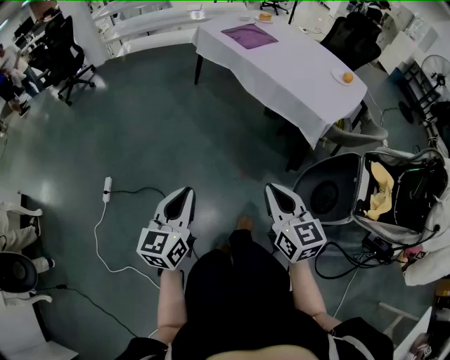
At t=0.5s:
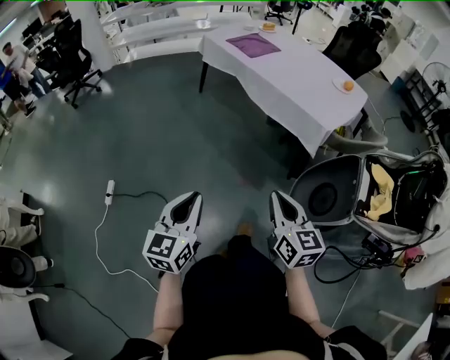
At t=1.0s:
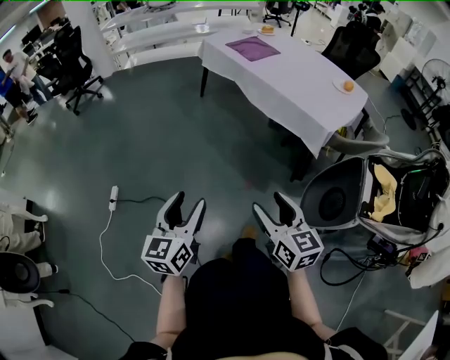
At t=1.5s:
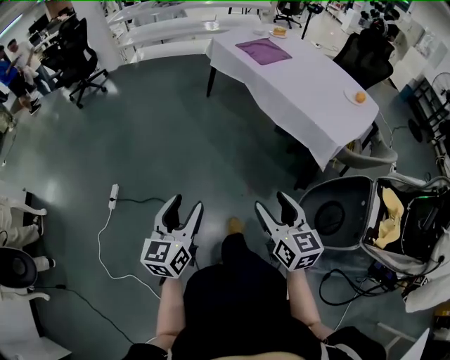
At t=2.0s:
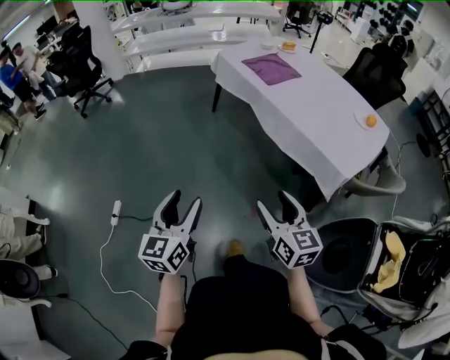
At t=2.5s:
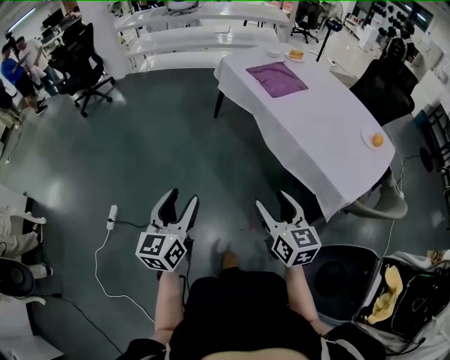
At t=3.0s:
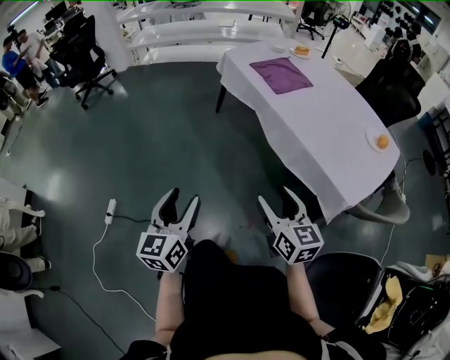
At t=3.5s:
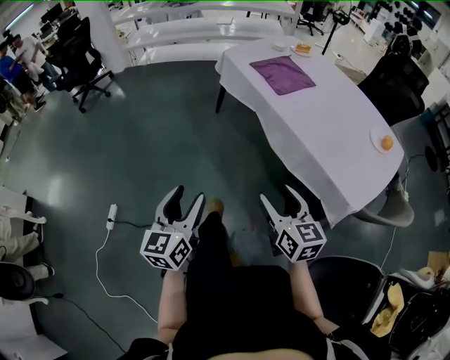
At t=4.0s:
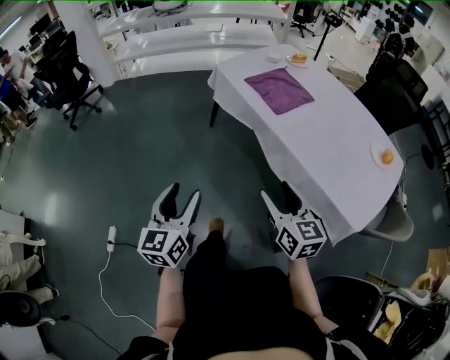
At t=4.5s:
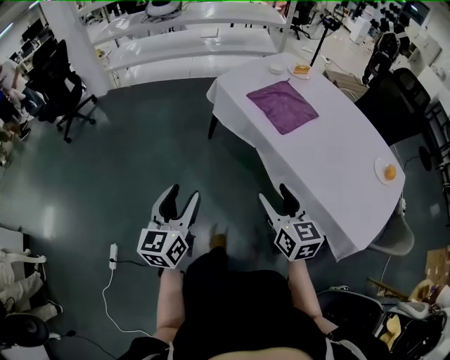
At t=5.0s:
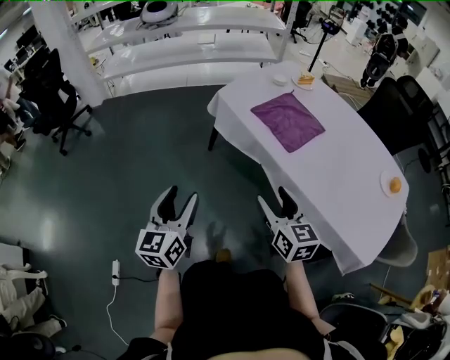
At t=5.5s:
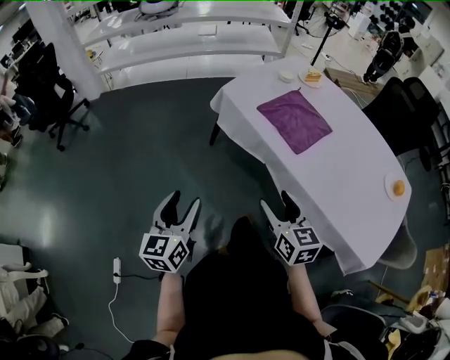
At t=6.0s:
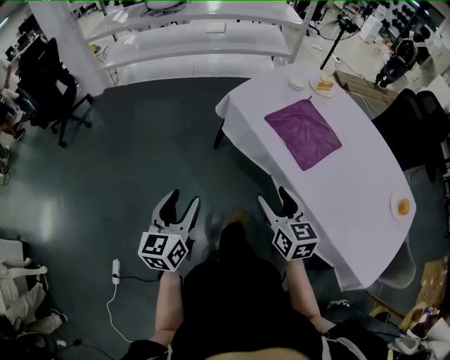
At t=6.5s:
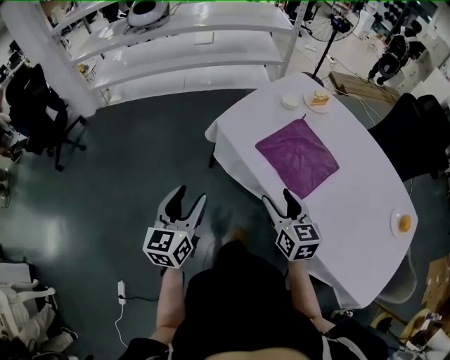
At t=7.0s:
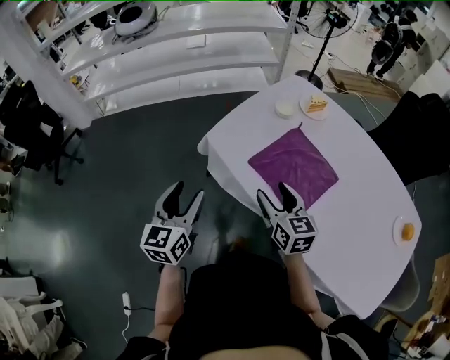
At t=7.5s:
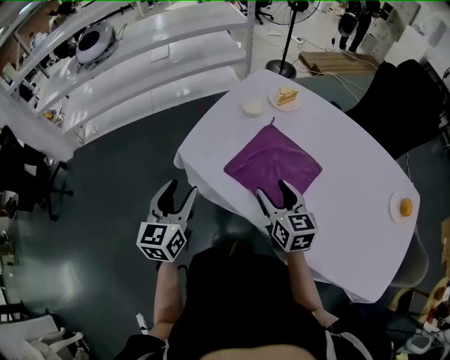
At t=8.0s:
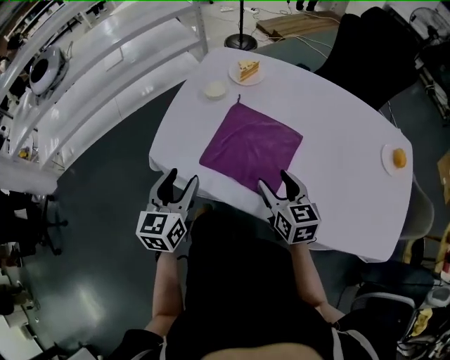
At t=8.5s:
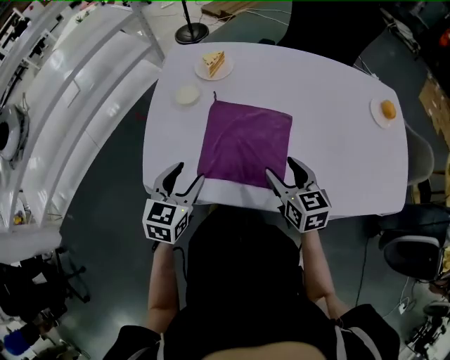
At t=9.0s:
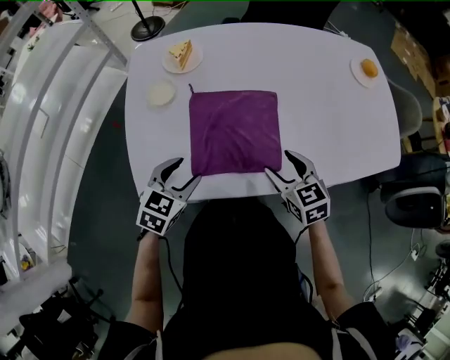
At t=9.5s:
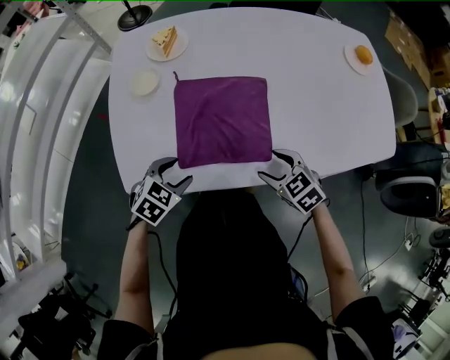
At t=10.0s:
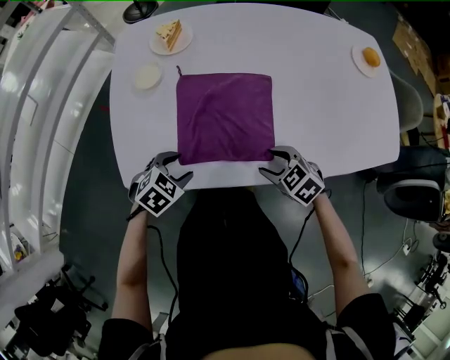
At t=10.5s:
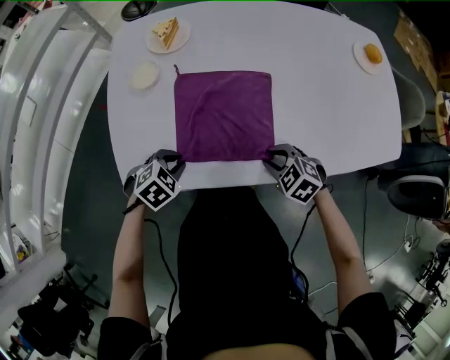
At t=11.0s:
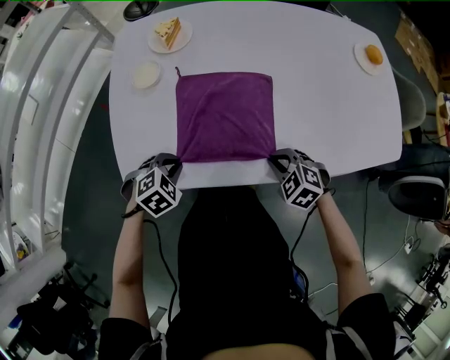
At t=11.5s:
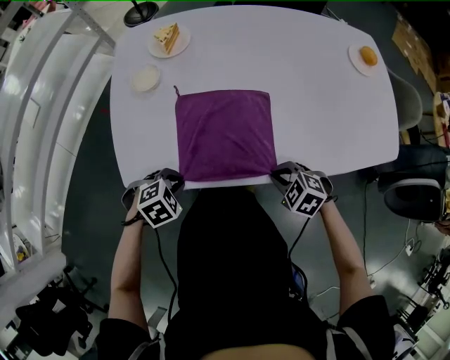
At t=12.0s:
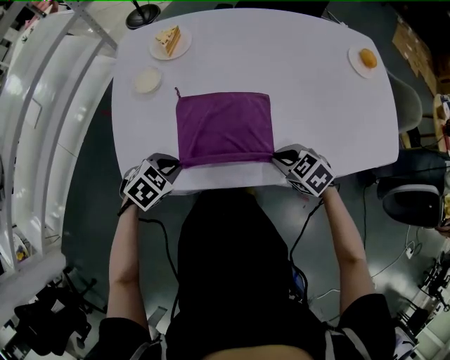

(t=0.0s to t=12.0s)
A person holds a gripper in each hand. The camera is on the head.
t=0.0s - t=2.0s: Both grippers travel together forward, roughly 20 cm. The right gripper opens its fingers. Meanwhile the left gripper opens its fingers.
t=2.0s - t=4.0s: The two grippers go some 30 cm forward.
t=4.0s - t=6.0s: The grippers both shift forward by roughly 30 cm.
t=6.0s - t=8.0s: The right gripper shifts by roughly 30 cm, and changes its angle by roughly 30 degrees. The left gripper shifts by approximately 40 cm, and turns by roughly 30 degrees.
t=8.0s - t=10.0s: The two grippers go approximately 15 cm downward. The left gripper tips its fingers downward by approximately 40 degrees. The right gripper points its fingers approximately 30 degrees further downward.
t=10.0s - t=12.0s: The right gripper closes up. Meanwhile the left gripper closes.

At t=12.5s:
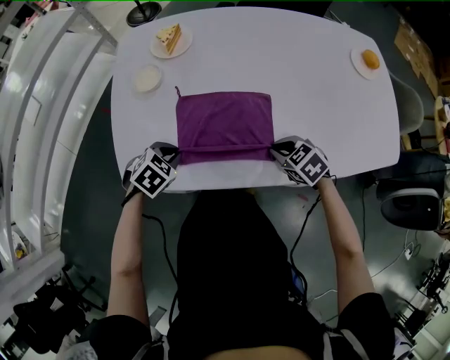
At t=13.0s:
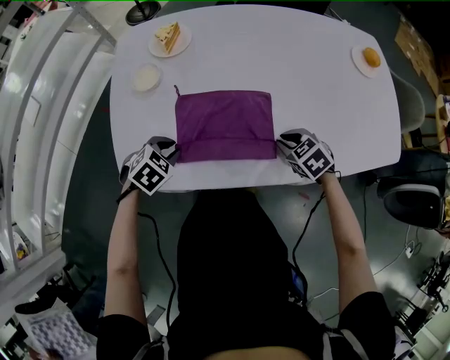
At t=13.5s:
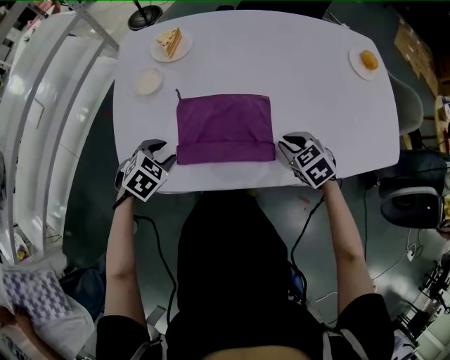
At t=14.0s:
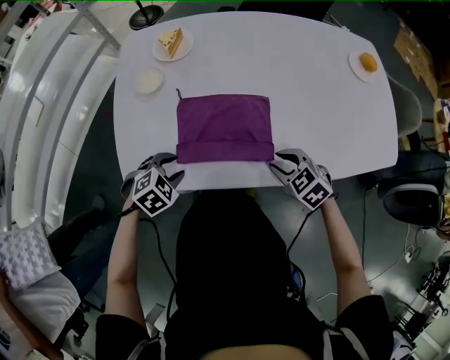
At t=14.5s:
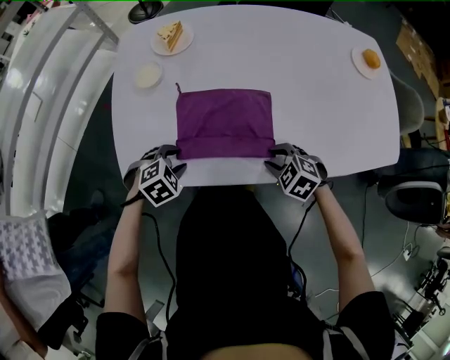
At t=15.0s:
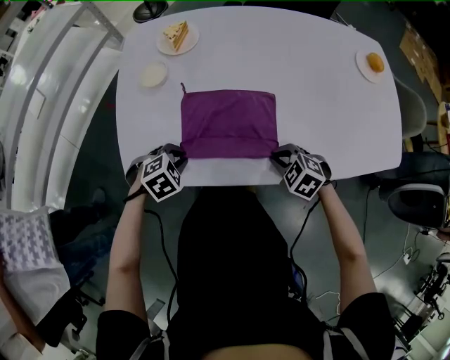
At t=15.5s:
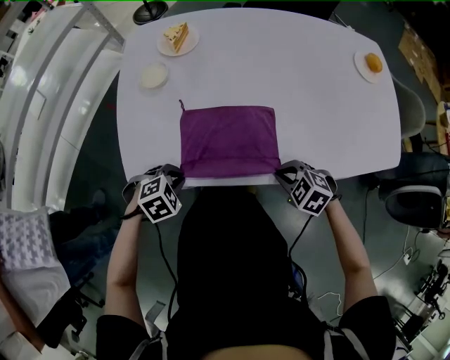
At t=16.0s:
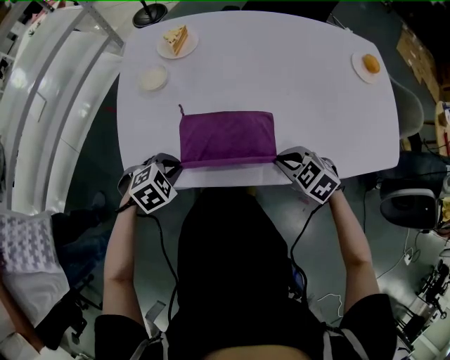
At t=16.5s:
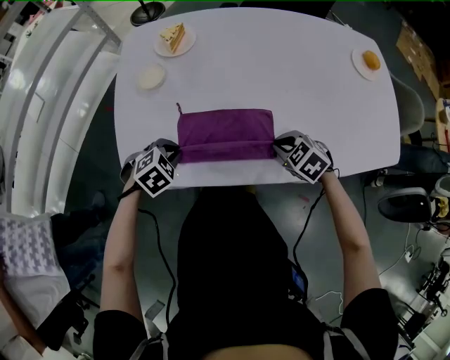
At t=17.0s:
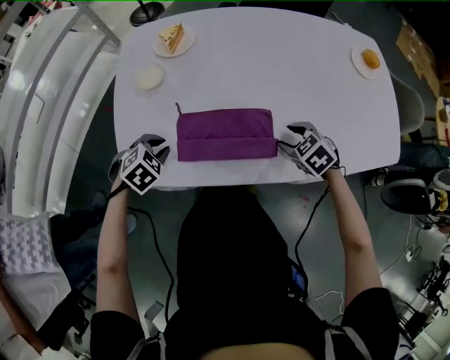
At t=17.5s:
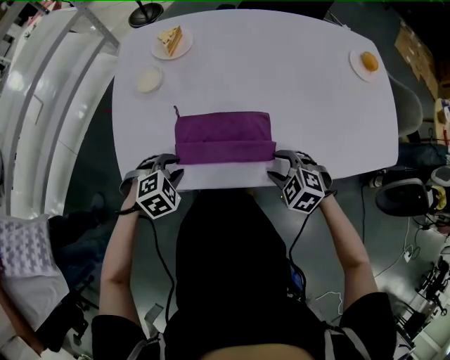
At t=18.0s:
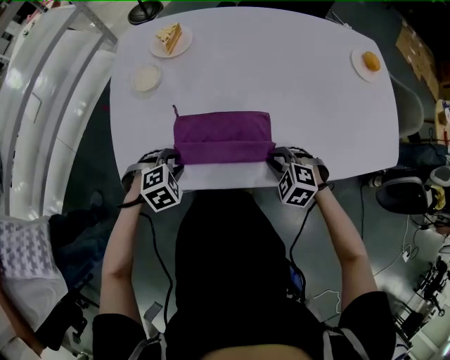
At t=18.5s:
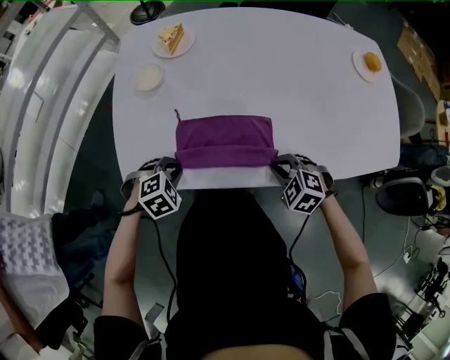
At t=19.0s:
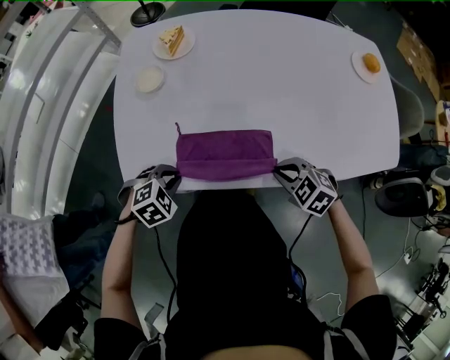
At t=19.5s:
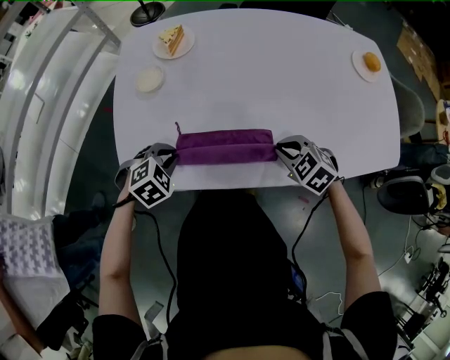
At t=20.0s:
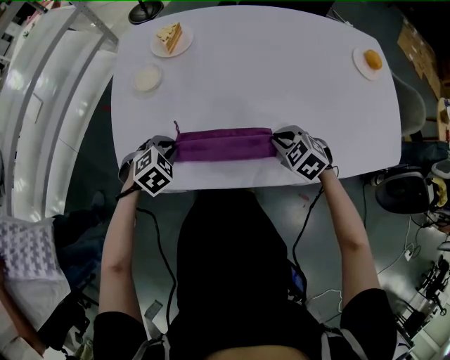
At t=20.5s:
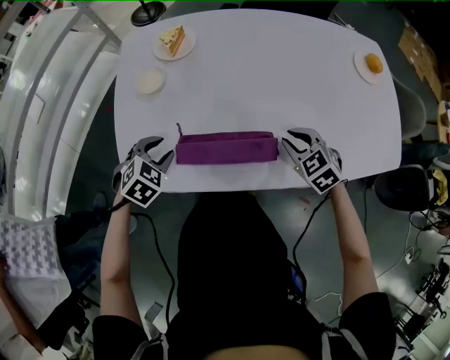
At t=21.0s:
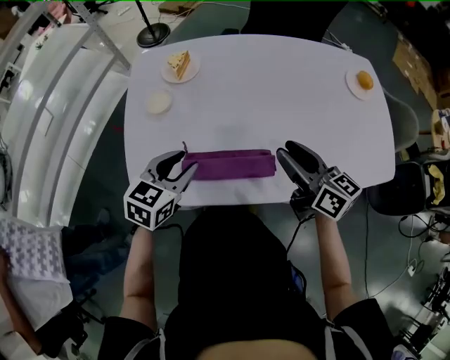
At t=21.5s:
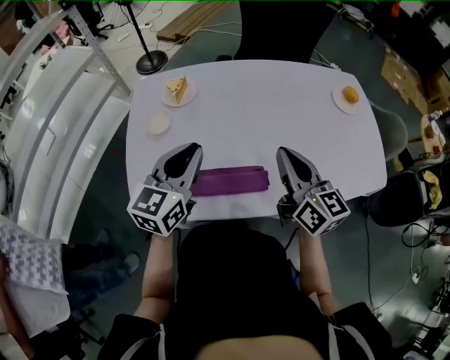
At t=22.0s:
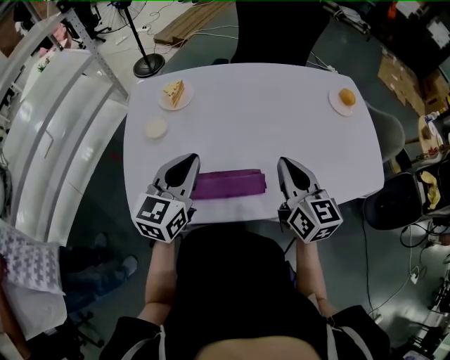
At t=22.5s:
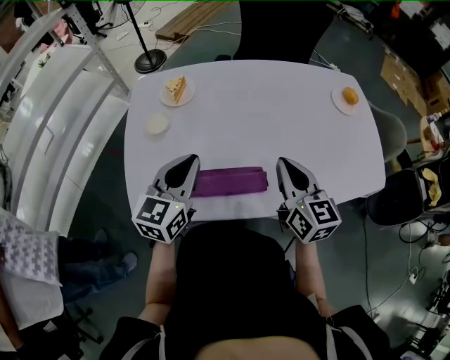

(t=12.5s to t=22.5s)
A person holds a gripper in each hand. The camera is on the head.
t=12.5s - t=14.5s: The right gripper opens; the left gripper opens up.
t=14.5s - t=16.5s: The right gripper closes its fingers; the left gripper closes.
t=16.5s - t=18.5s: The left gripper opens, then closes once more; the right gripper travels backward by about 5 cm, and opens, then closes again.
t=18.5s - t=20.5s: The right gripper shifts some 10 cm forward, and rotates about 20 degrees; the left gripper heads forward and upward, covering some 10 cm, rotates approximately 20 degrees, and opens.
t=20.5s - t=22.5s: The left gripper travels upward and to the right by about 25 cm, angles its fingers upward, by roughly 50 degrees, and closes up. Meanwhile the right gripper shifts about 20 cm upward, and points its fingers approximately 40 degrees further upward.

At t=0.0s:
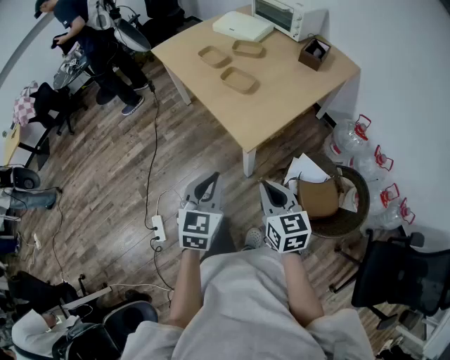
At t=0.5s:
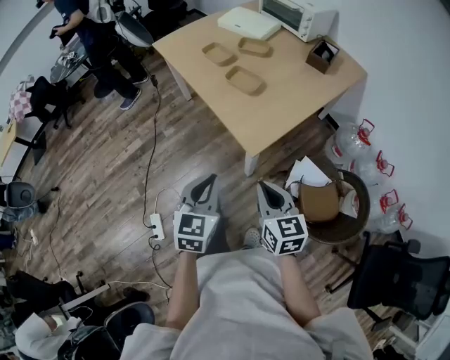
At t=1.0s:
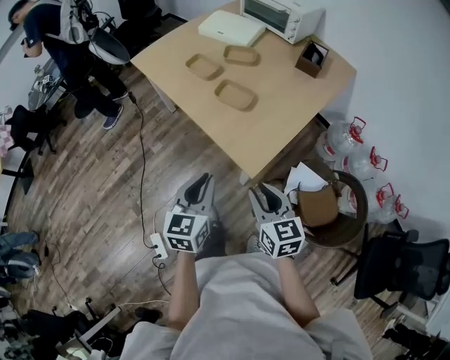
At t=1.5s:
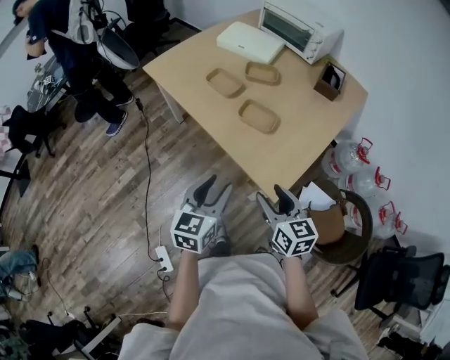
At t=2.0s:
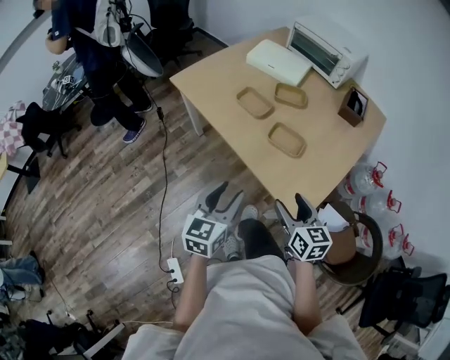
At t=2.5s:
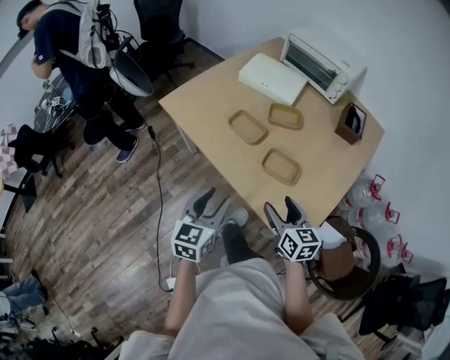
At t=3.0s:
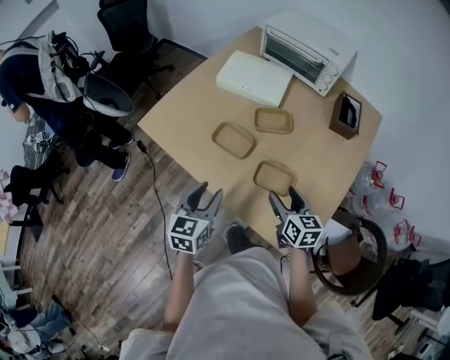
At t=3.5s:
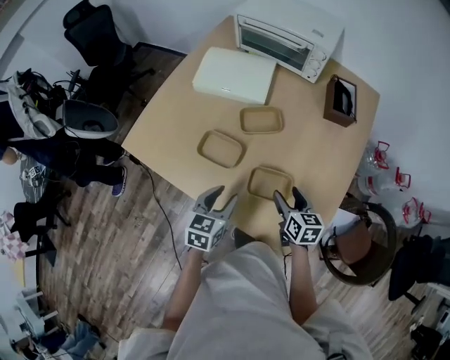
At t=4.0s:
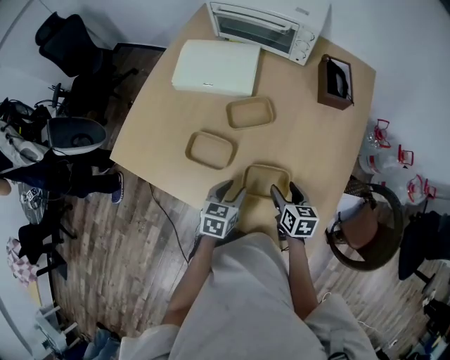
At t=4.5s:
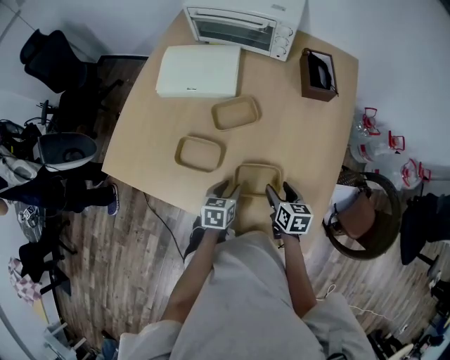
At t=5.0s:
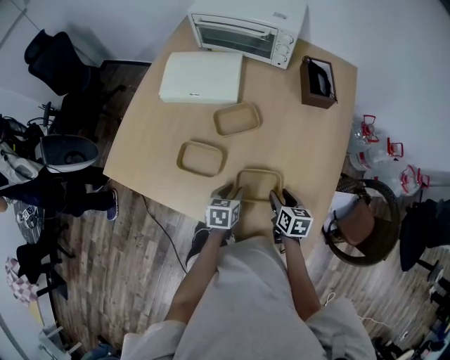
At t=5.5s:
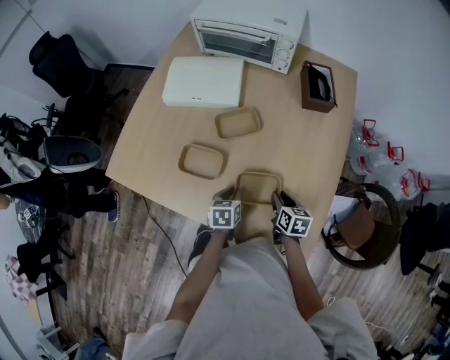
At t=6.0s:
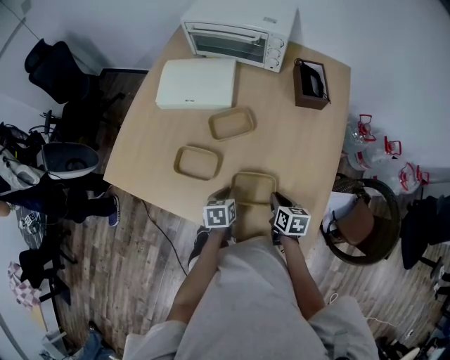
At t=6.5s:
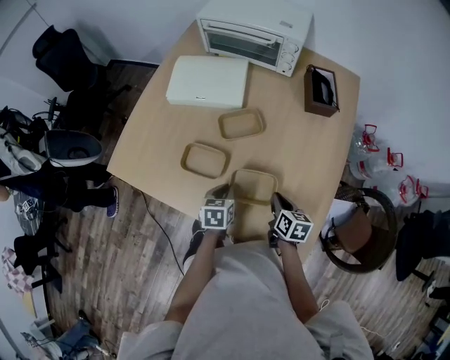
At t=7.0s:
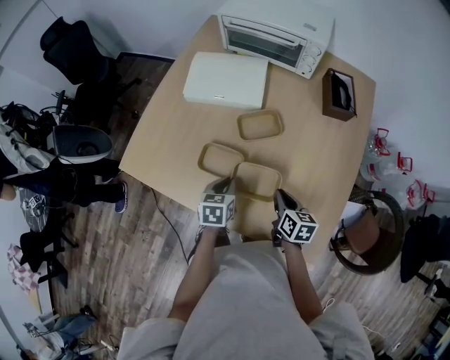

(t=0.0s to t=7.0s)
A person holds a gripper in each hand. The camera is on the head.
t=0.0s - t=2.0s: Both grippers move forward and to the left, approximately 35 cm. The right gripper opens up; the left gripper changes its angle by roughly 20 degrees, and opens up.
t=2.0s - t=3.5s: The right gripper heads forward and downward, covering roughly 30 cm, and rotates roughly 20 degrees. The left gripper travels forward by approximately 30 cm, and swivels approximately 30 degrees.
t=3.5s - t=5.0s: The right gripper moves downward, some 10 cm, while the left gripper heads downward, forward and to the right, covering roughly 15 cm.
t=5.0s - t=7.0s: The grippers both shift to the left and upward by roughly 10 cm. The right gripper closes up. The left gripper closes its fingers.
